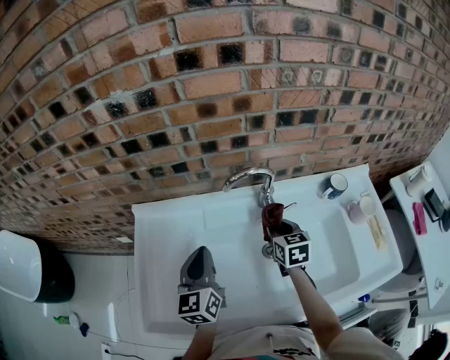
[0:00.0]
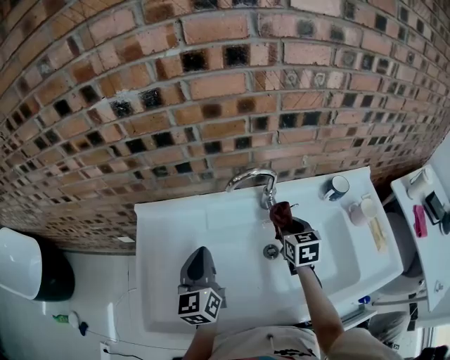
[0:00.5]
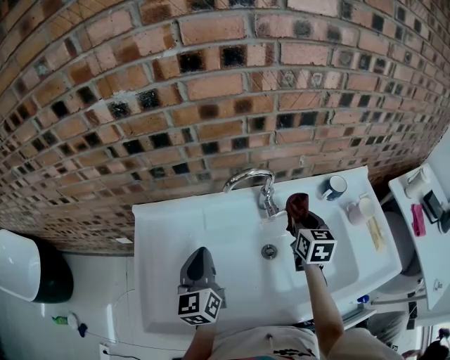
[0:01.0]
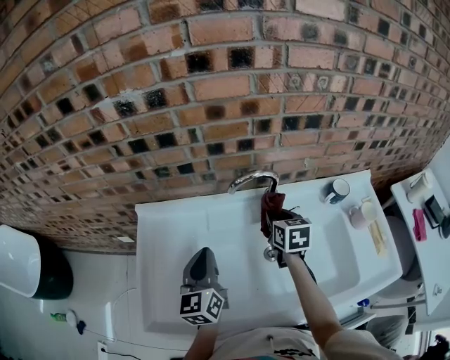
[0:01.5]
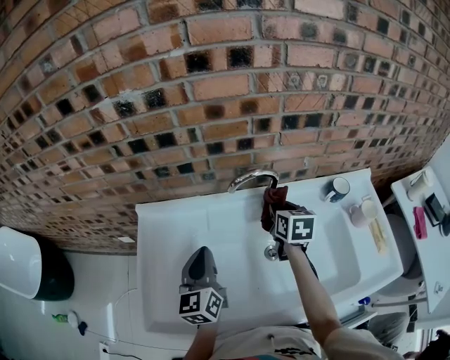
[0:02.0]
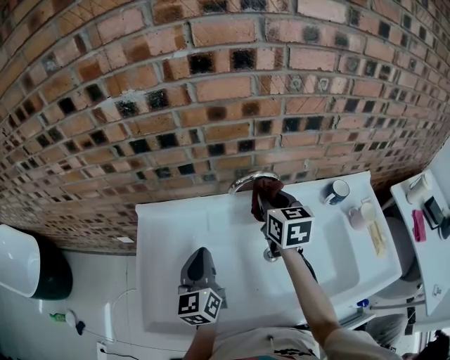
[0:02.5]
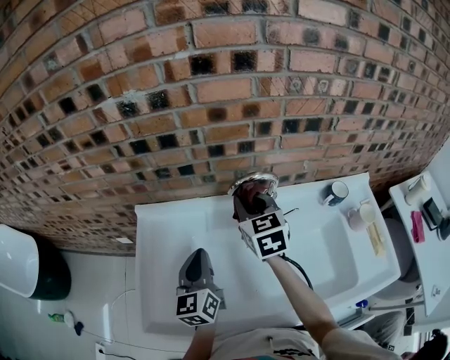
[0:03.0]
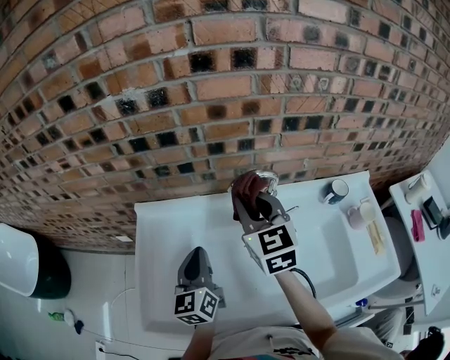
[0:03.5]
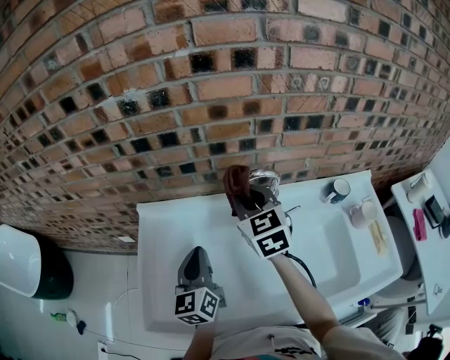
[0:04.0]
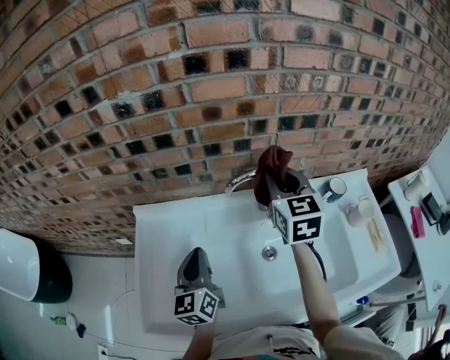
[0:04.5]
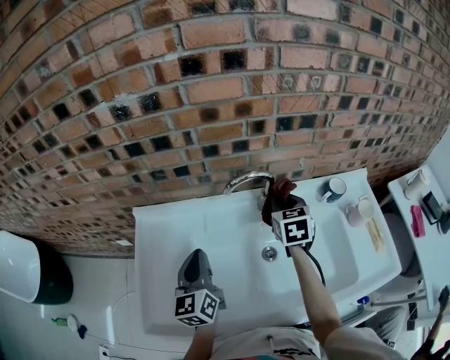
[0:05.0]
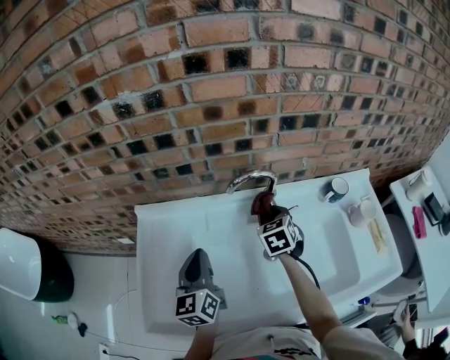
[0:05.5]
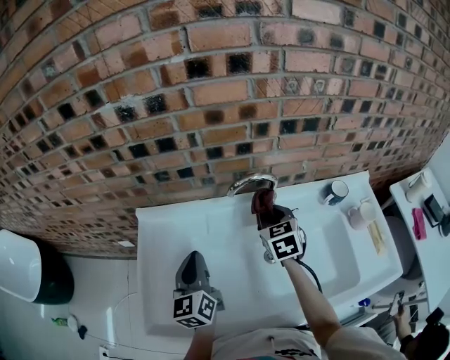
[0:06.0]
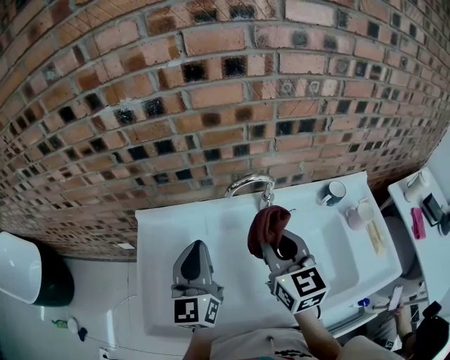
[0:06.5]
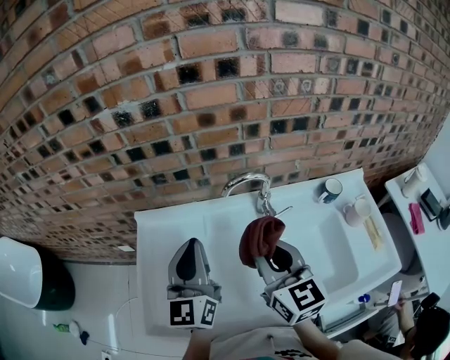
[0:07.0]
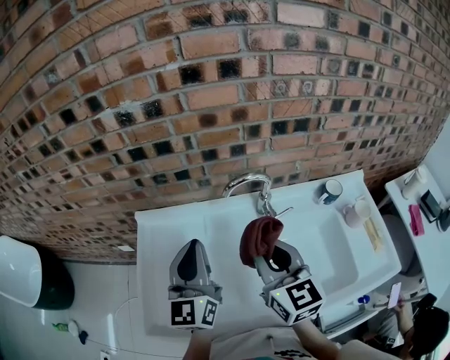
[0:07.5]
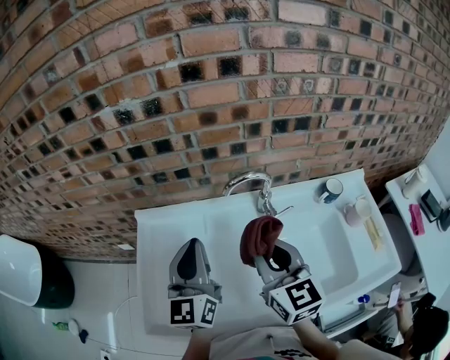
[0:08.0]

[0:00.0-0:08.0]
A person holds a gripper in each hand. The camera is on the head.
0:00.0 to 0:02.0: The right gripper moves upward and forward, about 5 cm, and goes to the right and returns, about 10 cm each way.
0:02.0 to 0:04.0: The right gripper heads to the left and upward, covering approximately 20 cm, and swivels about 40 degrees.
0:04.0 to 0:06.0: The right gripper goes up and down, about 20 cm each way, reversing 2 times.
0:06.0 to 0:08.0: The left gripper heads upward, covering roughly 10 cm, while the right gripper goes about 20 cm backward and upward, and swivels some 30 degrees.

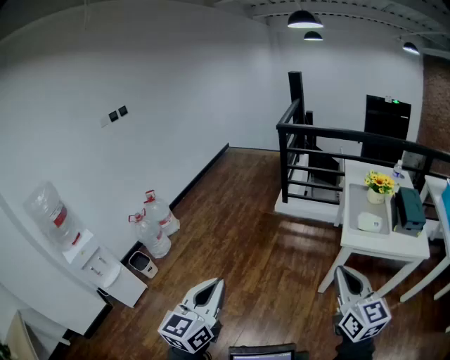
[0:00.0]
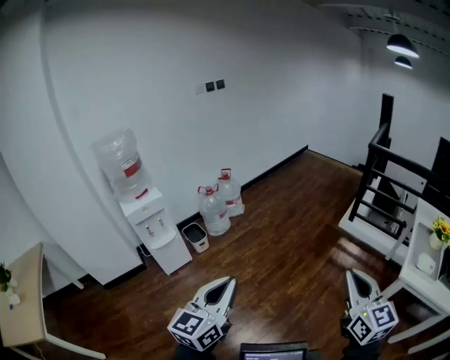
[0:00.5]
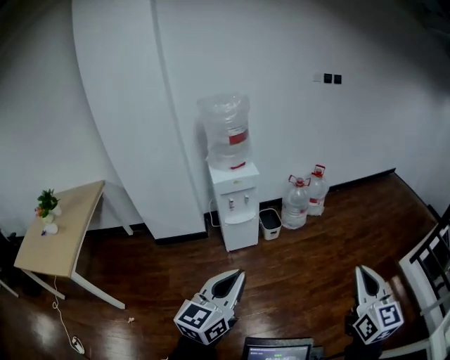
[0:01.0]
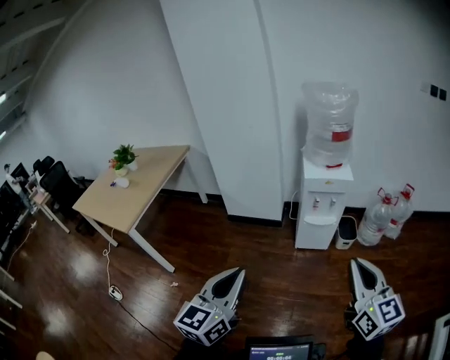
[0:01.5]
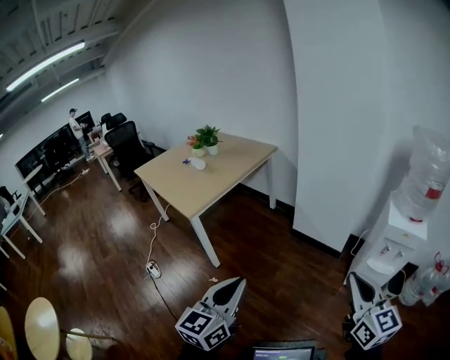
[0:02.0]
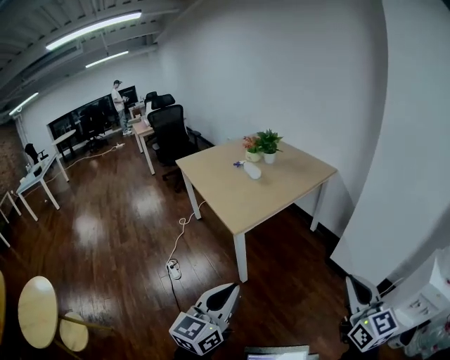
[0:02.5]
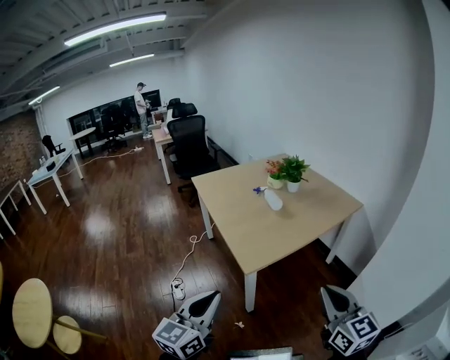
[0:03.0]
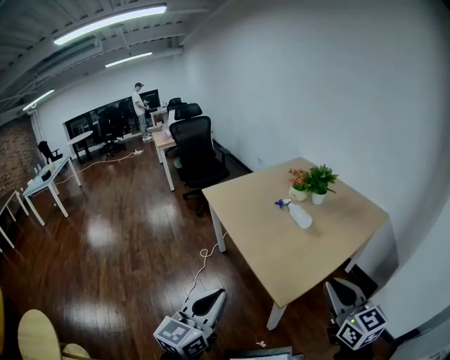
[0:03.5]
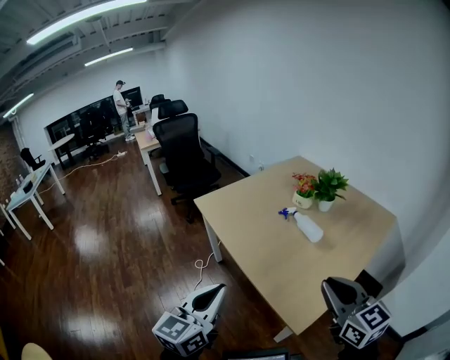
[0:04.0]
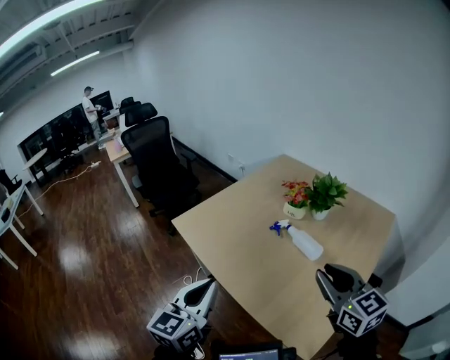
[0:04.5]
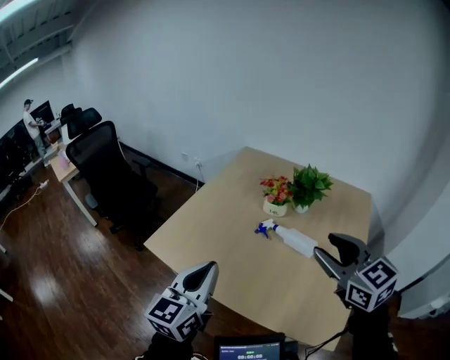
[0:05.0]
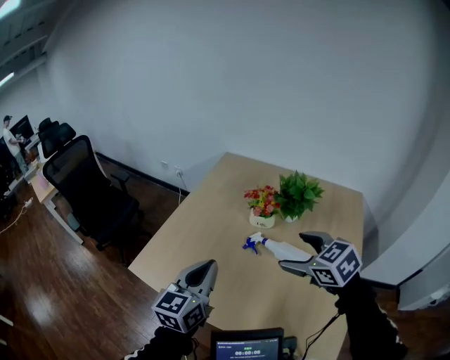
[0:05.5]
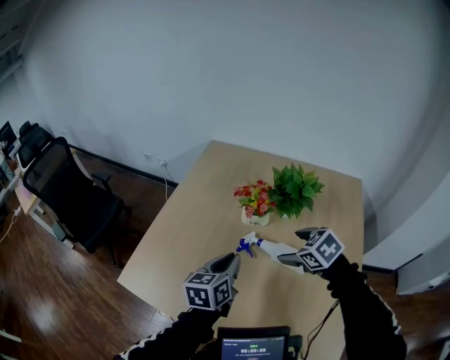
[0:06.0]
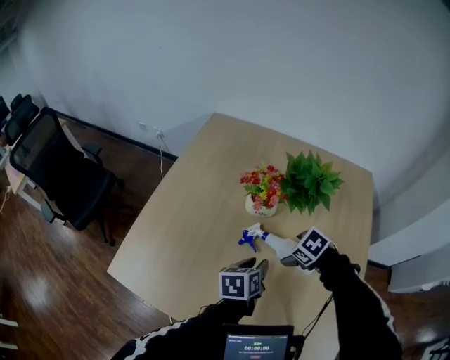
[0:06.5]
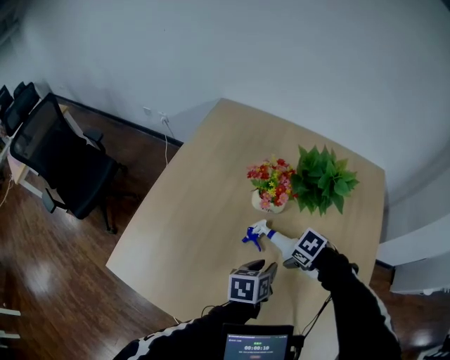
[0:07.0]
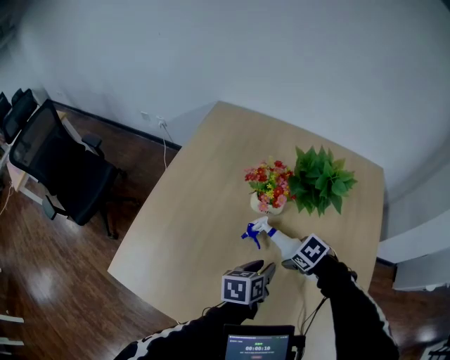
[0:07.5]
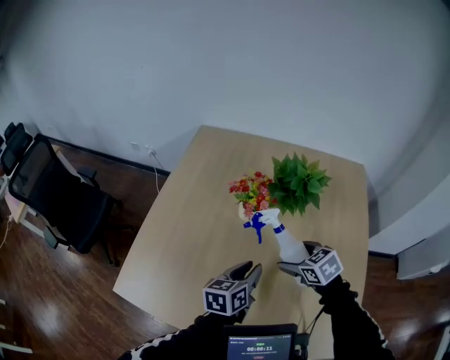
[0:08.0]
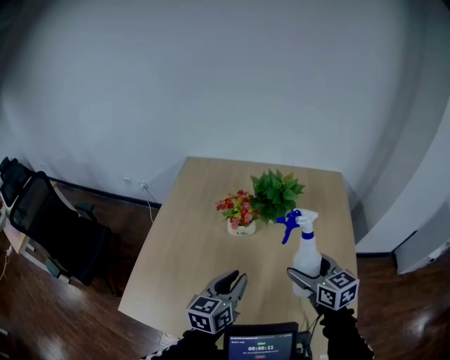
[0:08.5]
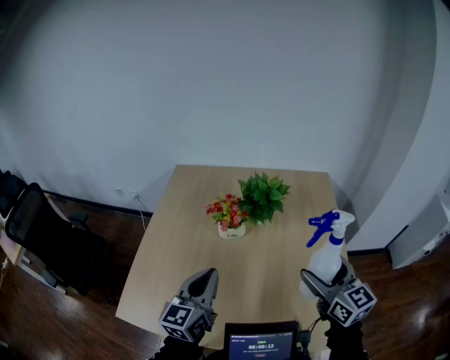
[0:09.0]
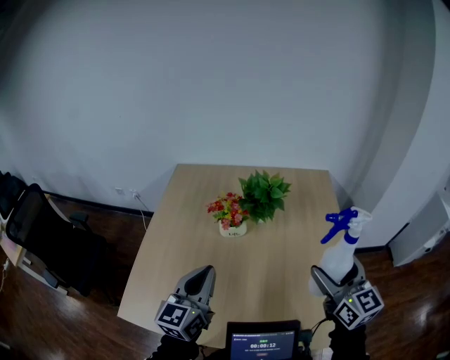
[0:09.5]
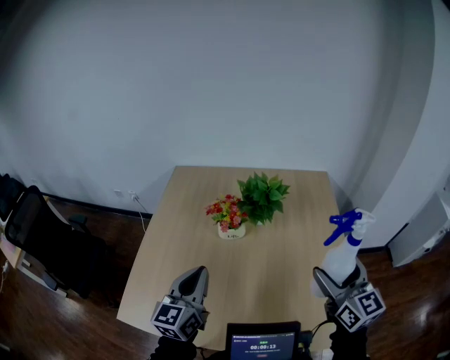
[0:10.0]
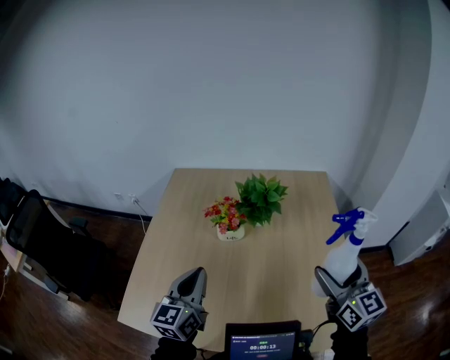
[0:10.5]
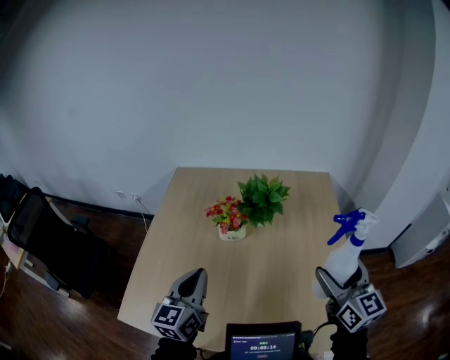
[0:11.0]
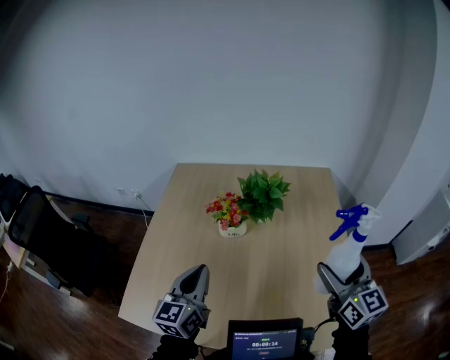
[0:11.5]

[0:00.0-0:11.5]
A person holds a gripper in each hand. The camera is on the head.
0:00.0 to 0:02.0: The two grippers travel together, approximately 1 m. The left gripper rotates roughly 90 degrees. The right gripper swivels approximately 100 degrees.
0:02.0 to 0:04.0: The pair of grippers is taken approximately 1.5 m. The right gripper swivels about 30 degrees.
0:04.0 to 0:06.0: Both grippers are carried forward, about 80 cm. The left gripper rotates some 40 degrees. Meanwhile the right gripper tilts its fingers some 50 degrees downward, and opens.
0:06.0 to 0:07.5: The two grippers go roughly 20 cm downward. The left gripper rotates roughly 30 degrees, and opens its fingers. Meanwhile the right gripper rotates roughly 30 degrees.
0:07.5 to 0:09.5: The grippers both shift upward by approximately 30 cm. The right gripper points its fingers roughly 80 degrees further upward. The left gripper tips its fingers upward by approximately 30 degrees, and closes.
0:09.5 to 0:11.5: The grippers stay close to where they were, moving slightly.

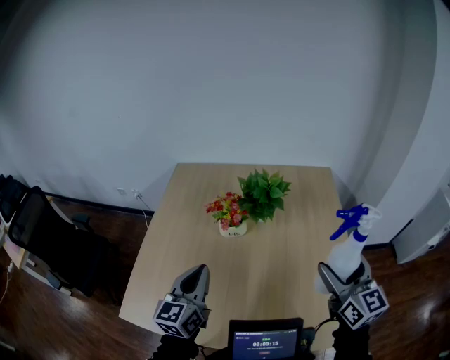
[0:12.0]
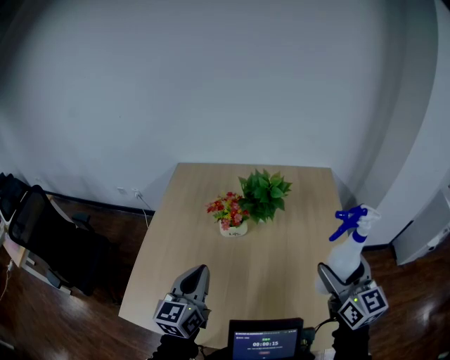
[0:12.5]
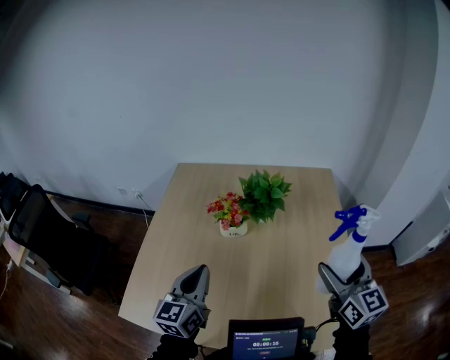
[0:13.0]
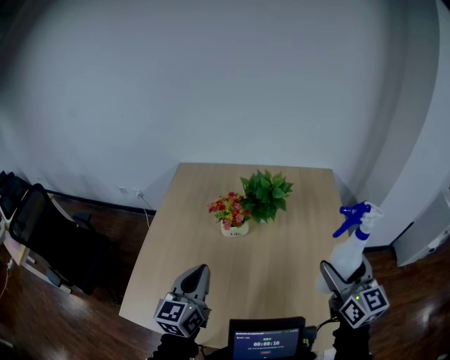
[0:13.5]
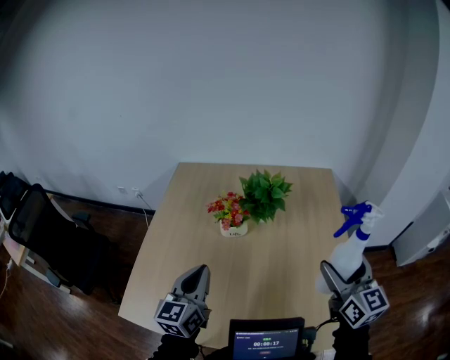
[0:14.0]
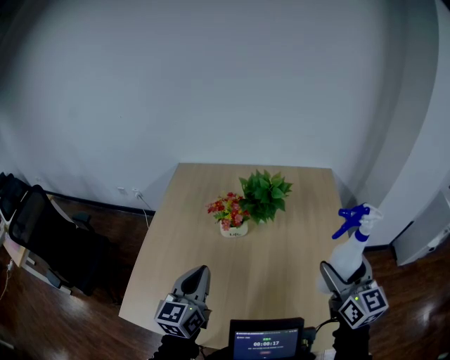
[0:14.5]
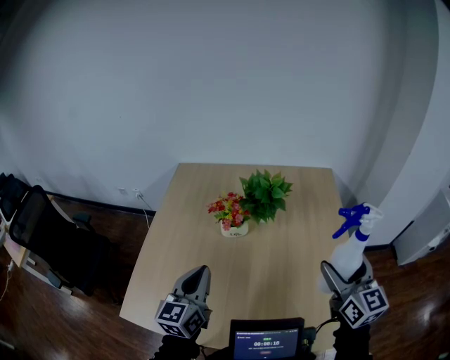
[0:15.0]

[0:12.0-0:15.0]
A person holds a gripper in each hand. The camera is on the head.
0:12.0 to 0:15.0: Both grippers stay put.

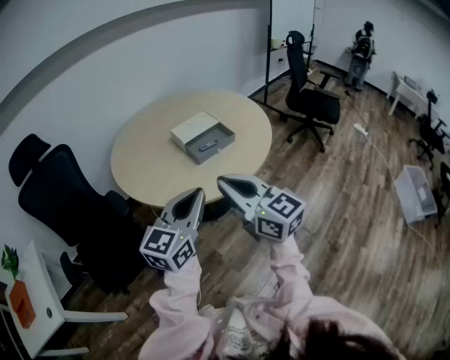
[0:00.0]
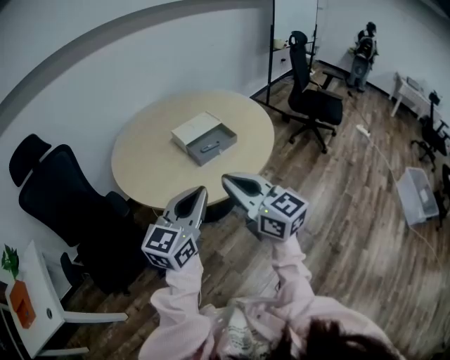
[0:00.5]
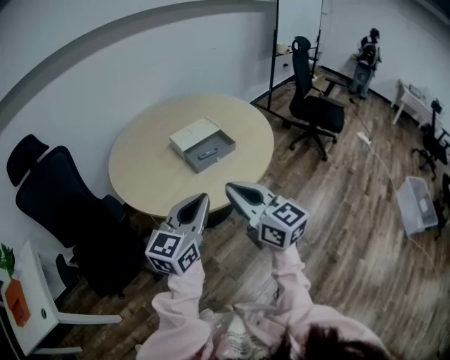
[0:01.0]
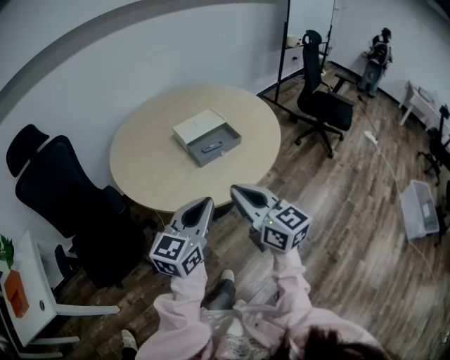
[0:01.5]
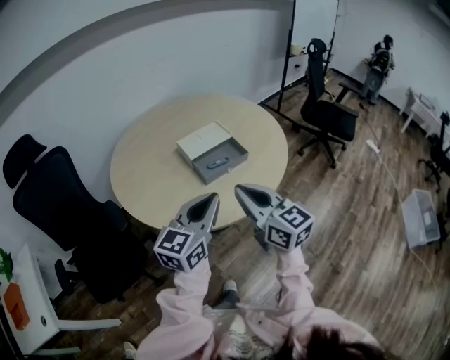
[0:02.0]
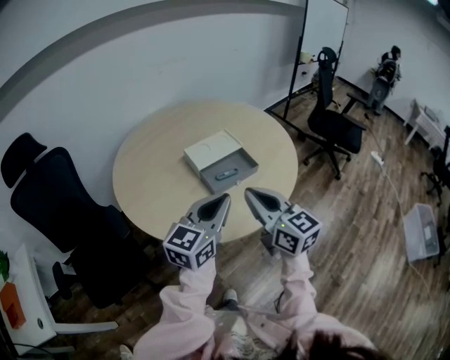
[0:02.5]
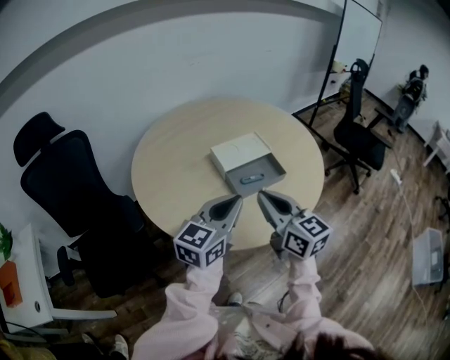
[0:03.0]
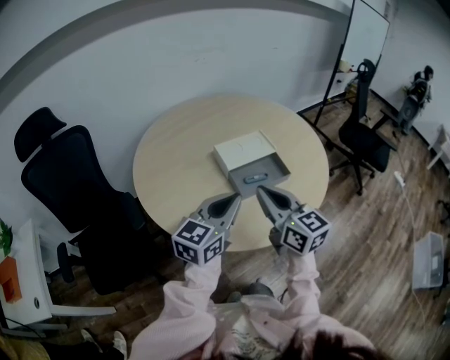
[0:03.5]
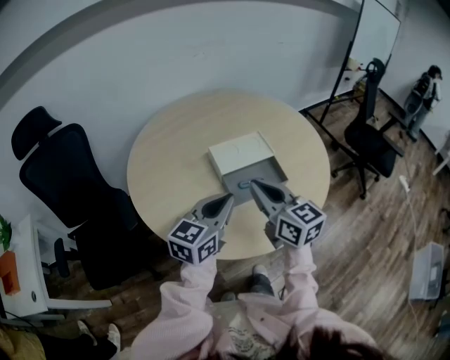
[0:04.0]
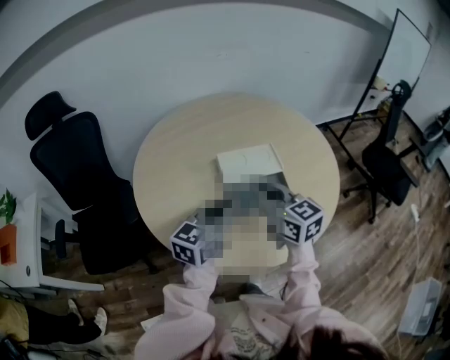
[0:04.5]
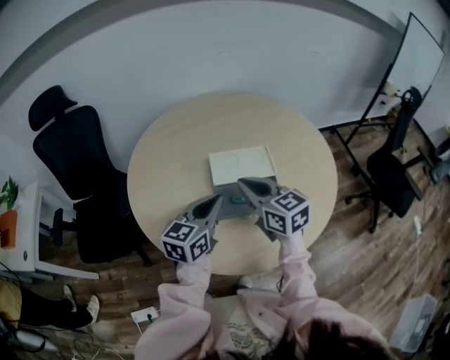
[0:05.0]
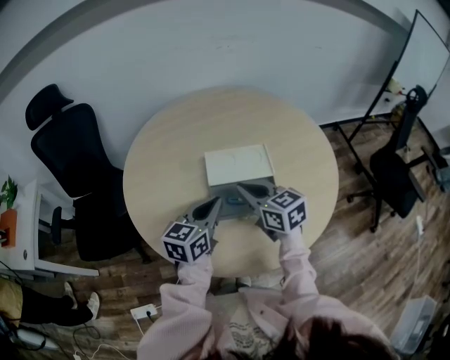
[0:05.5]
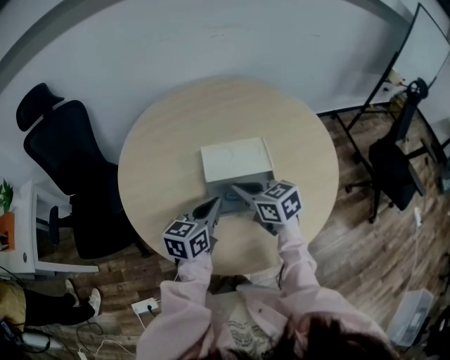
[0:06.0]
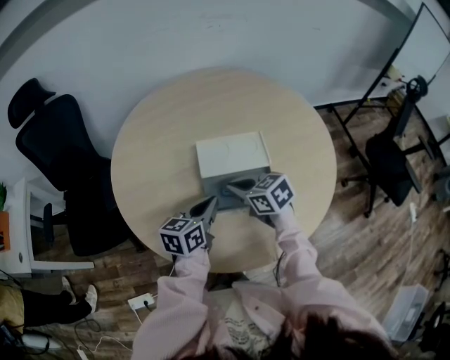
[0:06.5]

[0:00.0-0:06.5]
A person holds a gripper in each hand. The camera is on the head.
0:00.0 to 0:02.0: Both grippers move forward, some 15 cm.
0:02.0 to 0:04.5: The two grippers go about 20 cm forward. The right gripper rotates some 20 degrees.
0:04.5 to 0:06.5: The left gripper goes some 10 cm downward, and turns by approximately 20 degrees. The right gripper moves downward and forward, about 15 cm, and turns by about 30 degrees.
